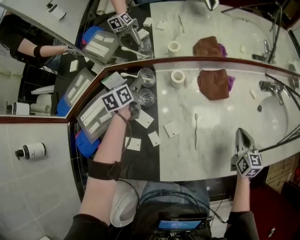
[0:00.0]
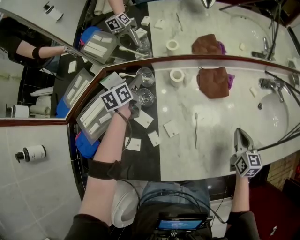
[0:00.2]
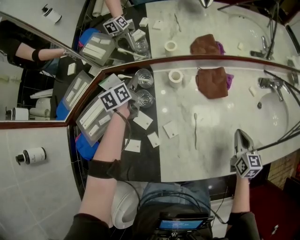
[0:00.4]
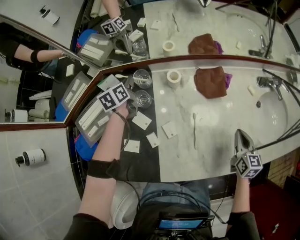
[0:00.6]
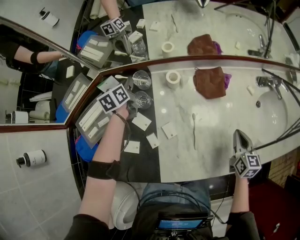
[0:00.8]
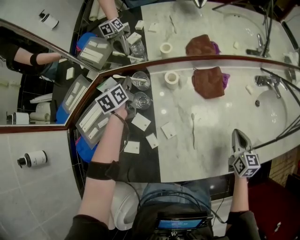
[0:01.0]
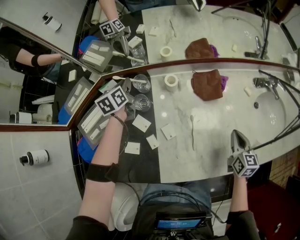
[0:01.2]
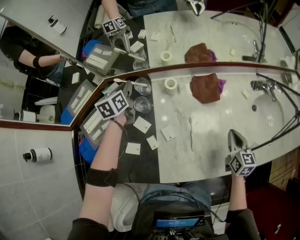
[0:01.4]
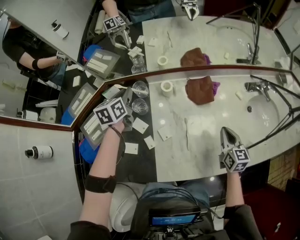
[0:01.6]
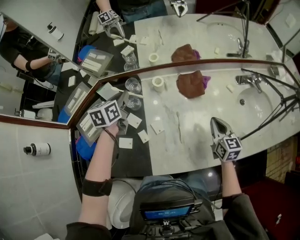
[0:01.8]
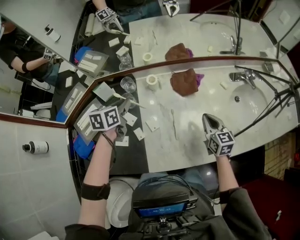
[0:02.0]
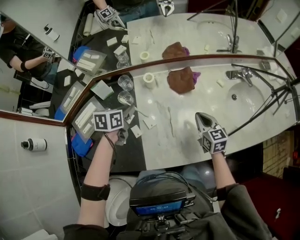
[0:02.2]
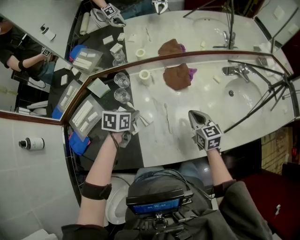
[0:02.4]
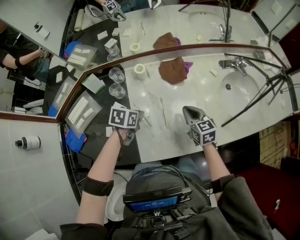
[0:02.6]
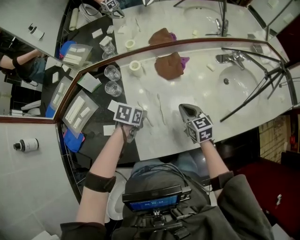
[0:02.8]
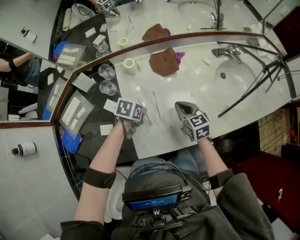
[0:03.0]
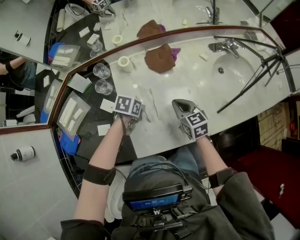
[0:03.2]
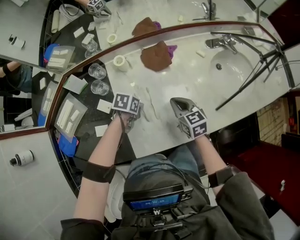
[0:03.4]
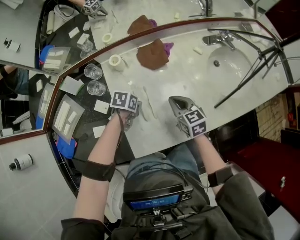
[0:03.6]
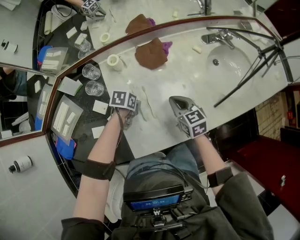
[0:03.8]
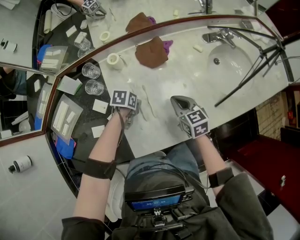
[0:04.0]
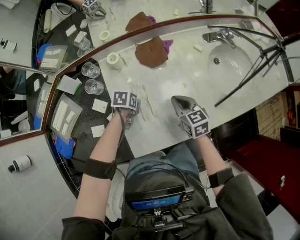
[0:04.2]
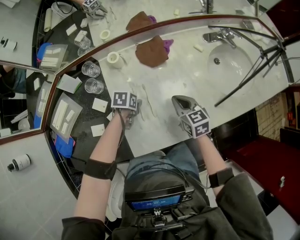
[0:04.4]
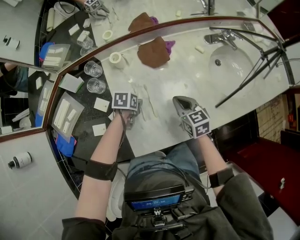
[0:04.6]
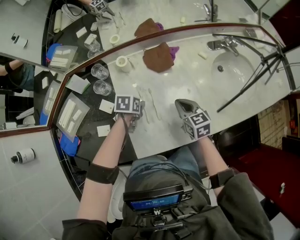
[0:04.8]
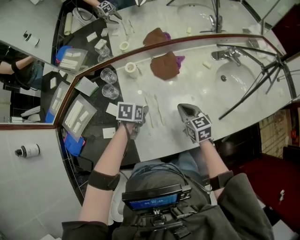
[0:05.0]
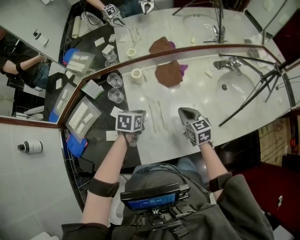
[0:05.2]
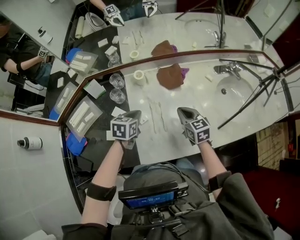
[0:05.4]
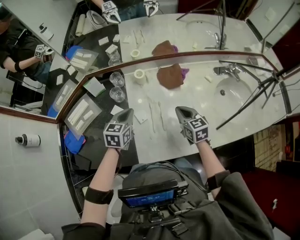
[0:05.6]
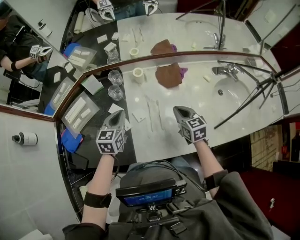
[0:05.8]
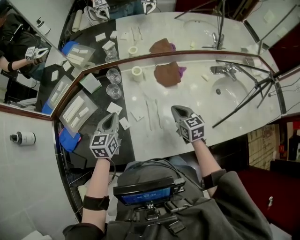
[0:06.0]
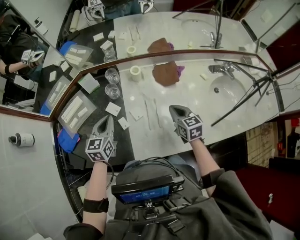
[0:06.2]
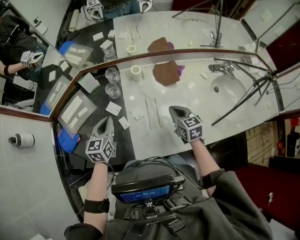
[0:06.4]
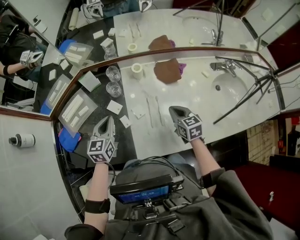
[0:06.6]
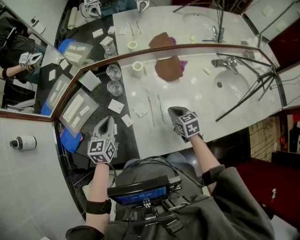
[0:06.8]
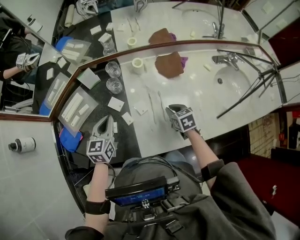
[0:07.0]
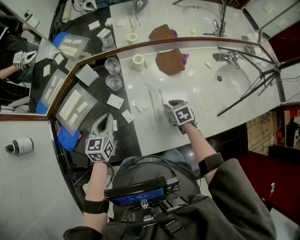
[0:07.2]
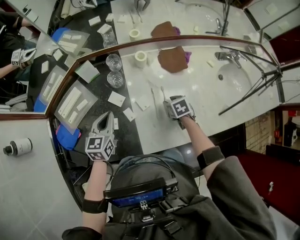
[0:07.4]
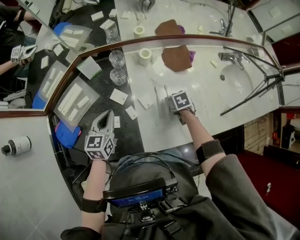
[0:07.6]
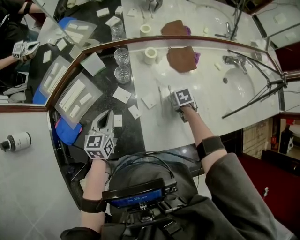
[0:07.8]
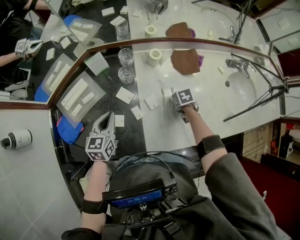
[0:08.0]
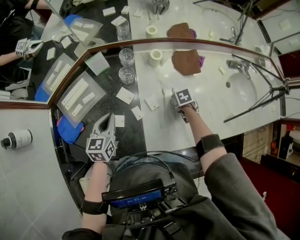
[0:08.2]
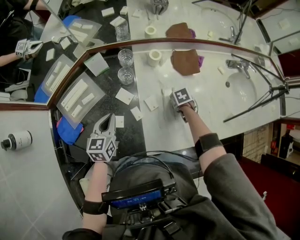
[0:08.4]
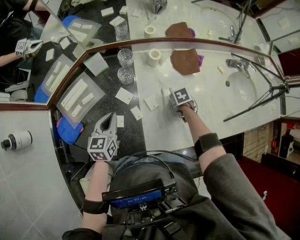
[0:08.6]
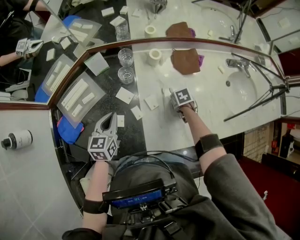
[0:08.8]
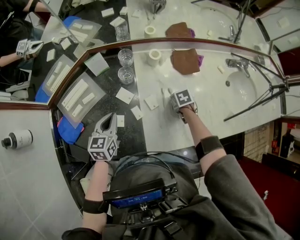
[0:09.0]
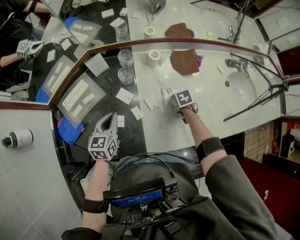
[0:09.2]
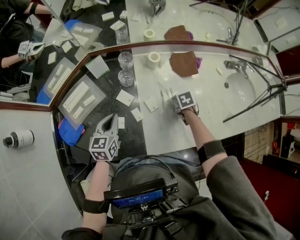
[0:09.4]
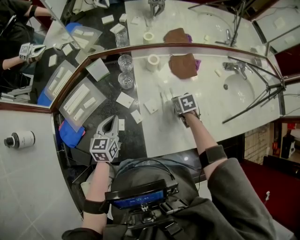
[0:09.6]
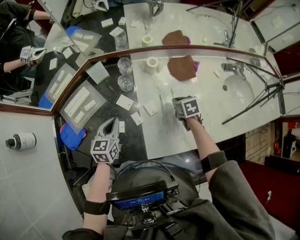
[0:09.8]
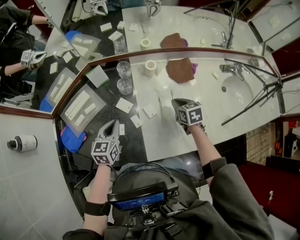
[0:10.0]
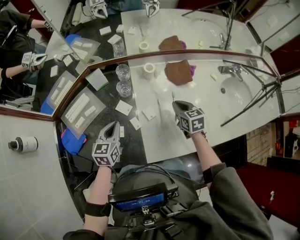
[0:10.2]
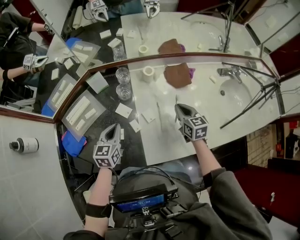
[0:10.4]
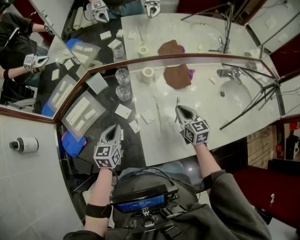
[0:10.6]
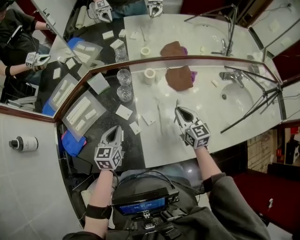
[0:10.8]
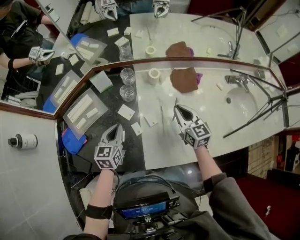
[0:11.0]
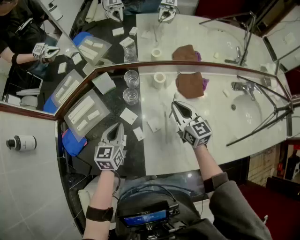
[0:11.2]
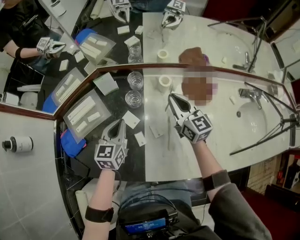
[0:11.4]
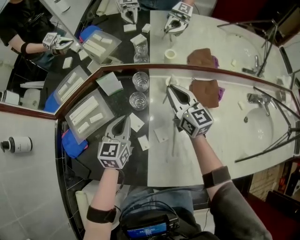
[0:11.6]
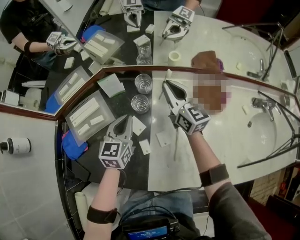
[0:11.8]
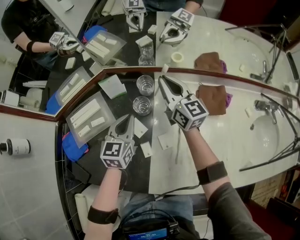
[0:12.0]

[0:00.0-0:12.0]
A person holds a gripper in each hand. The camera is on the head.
0:00.0 to 0:01.6: The left gripper shifts approximately 10 cm upward, and closes.
0:01.6 to 0:03.0: The left gripper goes approximately 35 cm to the right, backward and downward, and turns by some 50 degrees; the right gripper moves to the left, roughly 5 cm.
0:03.0 to 0:04.4: The left gripper travels downward by about 5 cm, and opens.
0:04.4 to 0:06.0: The right gripper moves approximately 10 cm. Meanwhile the left gripper heads upward, covering about 20 cm, points its fingers roughly 40 degrees further upward, and closes its fingers.
0:06.0 to 0:07.6: The left gripper shifts some 10 cm to the left; the right gripper shifts about 15 cm downward, tilts its fingers roughly 40 degrees downward, and opens its fingers.
0:07.6 to 0:09.0: The right gripper closes its fingers.
0:09.0 to 0:10.4: The right gripper is displaced upward by roughly 15 cm, and points its fingers some 40 degrees further upward.
0:10.4 to 0:12.0: The left gripper shifts roughly 15 cm forward; the right gripper goes some 30 cm forward and to the left, and points its fingers some 30 degrees further upward.

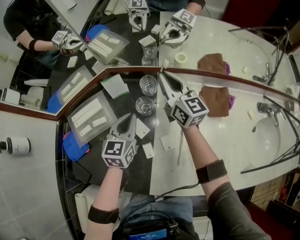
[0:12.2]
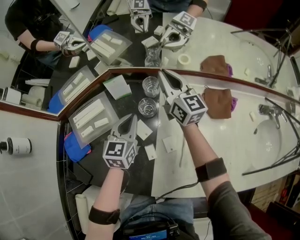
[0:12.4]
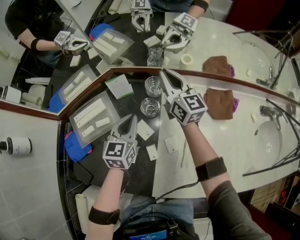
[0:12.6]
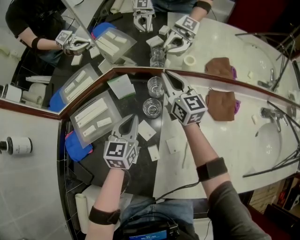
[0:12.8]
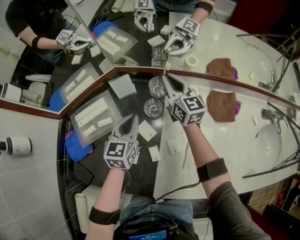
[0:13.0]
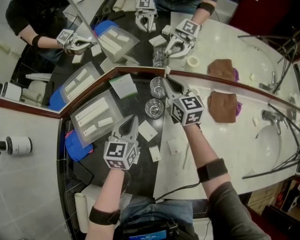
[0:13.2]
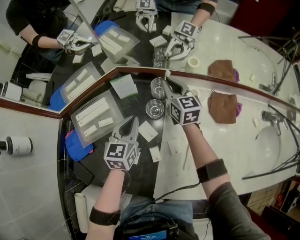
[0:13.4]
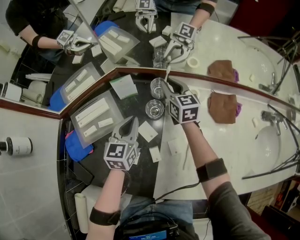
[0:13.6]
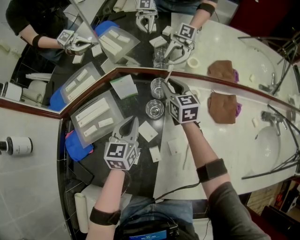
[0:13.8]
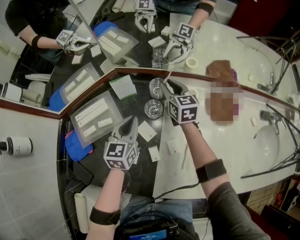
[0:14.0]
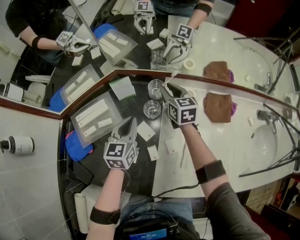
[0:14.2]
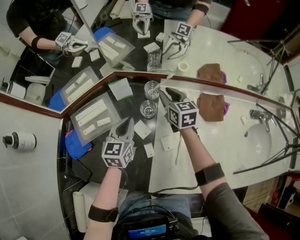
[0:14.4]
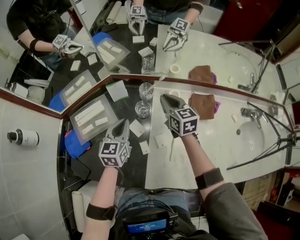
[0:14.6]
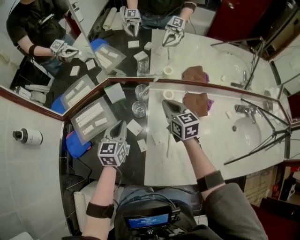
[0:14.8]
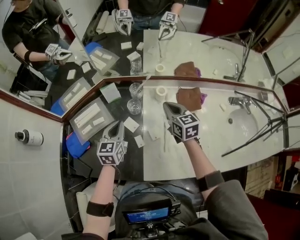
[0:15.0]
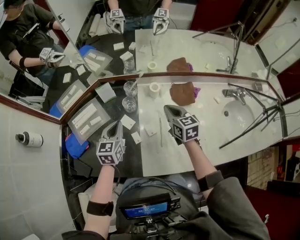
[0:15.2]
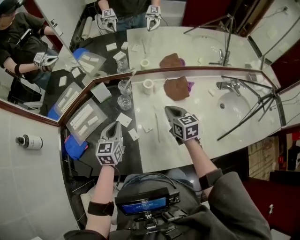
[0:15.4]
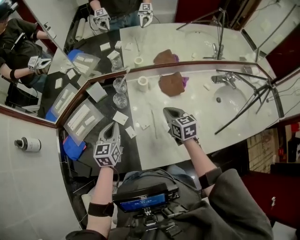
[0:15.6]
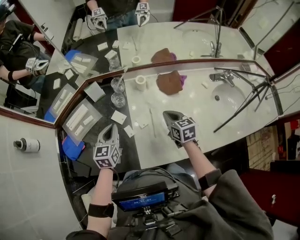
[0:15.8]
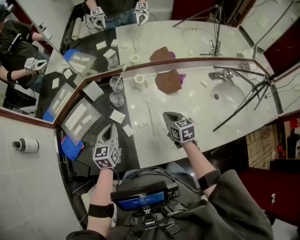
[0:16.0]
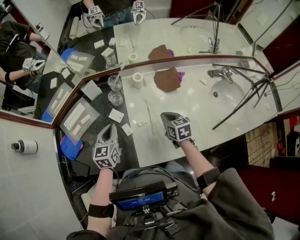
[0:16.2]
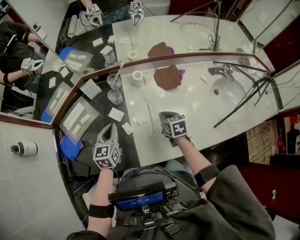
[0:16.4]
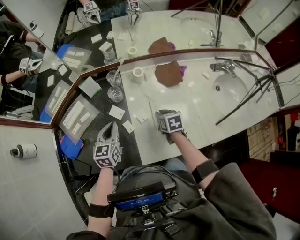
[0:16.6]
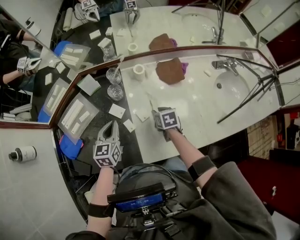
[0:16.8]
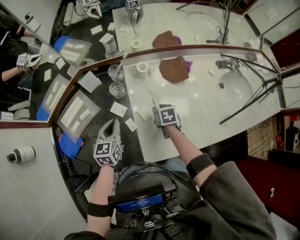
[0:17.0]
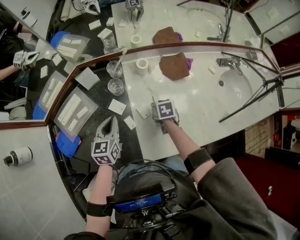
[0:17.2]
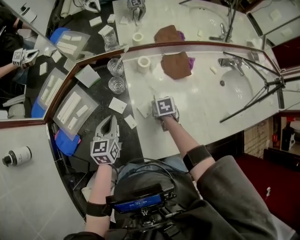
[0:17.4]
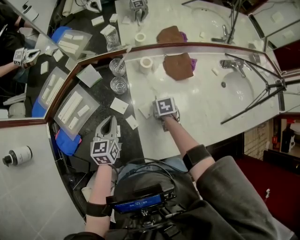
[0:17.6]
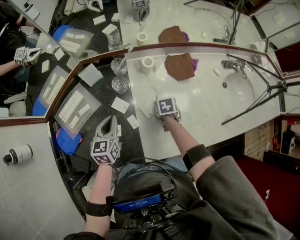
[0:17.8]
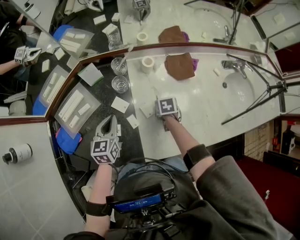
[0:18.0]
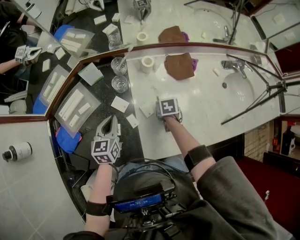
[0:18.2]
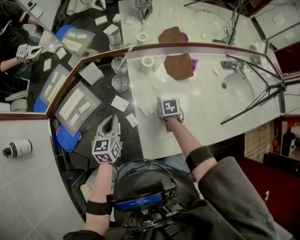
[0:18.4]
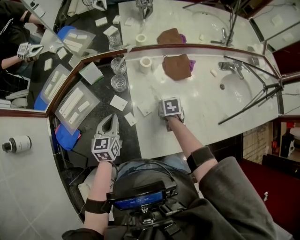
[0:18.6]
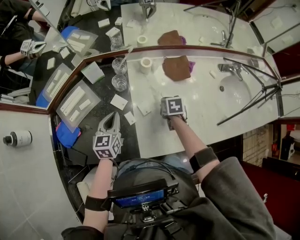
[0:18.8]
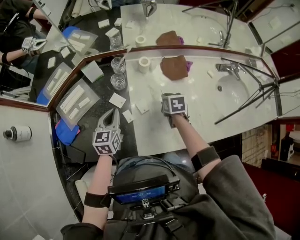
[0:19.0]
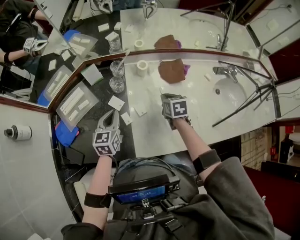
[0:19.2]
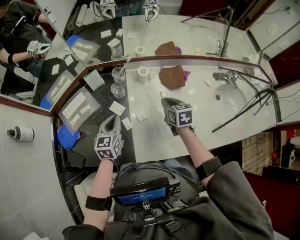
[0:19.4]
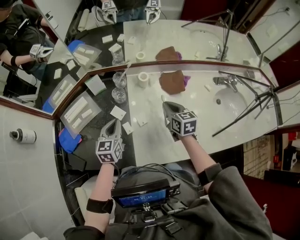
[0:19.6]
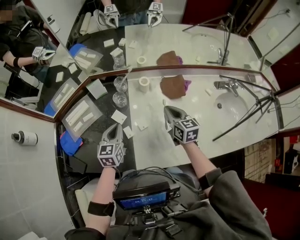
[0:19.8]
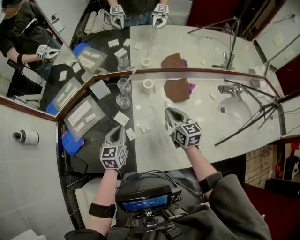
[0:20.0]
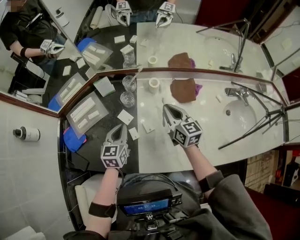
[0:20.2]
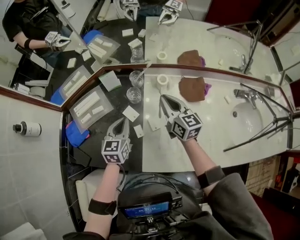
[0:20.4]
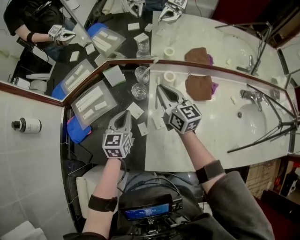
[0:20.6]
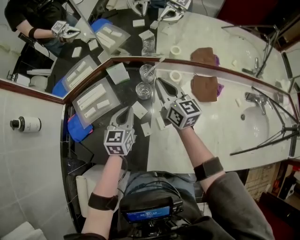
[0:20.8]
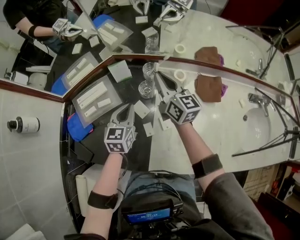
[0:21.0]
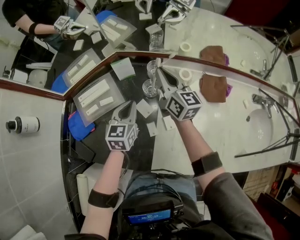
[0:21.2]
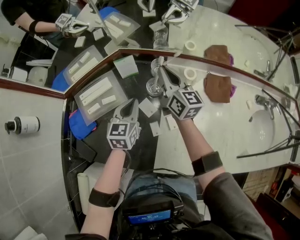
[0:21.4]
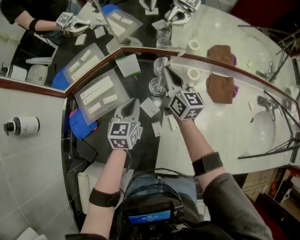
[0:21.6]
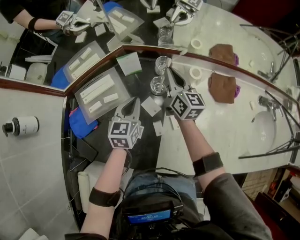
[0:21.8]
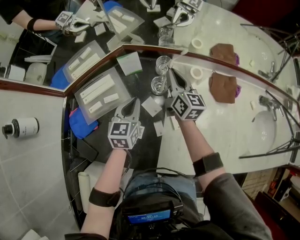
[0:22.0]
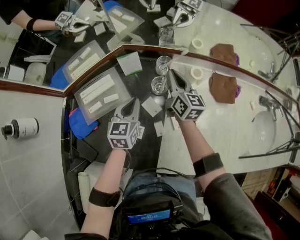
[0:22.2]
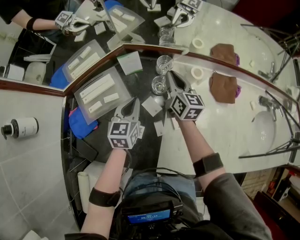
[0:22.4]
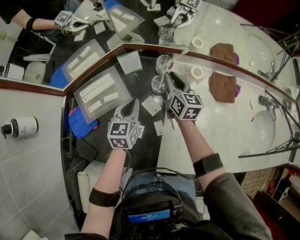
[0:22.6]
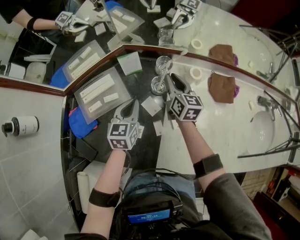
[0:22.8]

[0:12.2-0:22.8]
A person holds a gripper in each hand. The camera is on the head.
0:12.2 to 0:13.8: The right gripper is displaced downward by roughly 10 cm, and rotates roughly 20 degrees.
0:13.8 to 0:15.2: The left gripper shifts about 10 cm backward and upward; the right gripper travels backward, to the right and upward by some 25 cm, and closes.
0:15.2 to 0:16.8: The left gripper moves about 5 cm; the right gripper shifts approximately 15 cm downward and backward, rotates roughly 30 degrees, and opens its fingers.
0:16.8 to 0:18.2: The right gripper shifts about 5 cm downward, and closes.
0:18.2 to 0:19.8: The left gripper shifts approximately 5 cm to the right, while the right gripper goes about 20 cm upward, and tips its fingers upward by some 40 degrees.
0:19.8 to 0:21.2: The left gripper travels forward and to the left by approximately 10 cm. Meanwhile the right gripper moves forward and to the left, roughly 25 cm, and changes its angle by roughly 20 degrees.
0:21.2 to 0:22.8: The right gripper moves downward, about 10 cm.

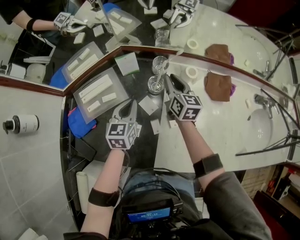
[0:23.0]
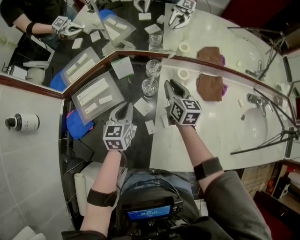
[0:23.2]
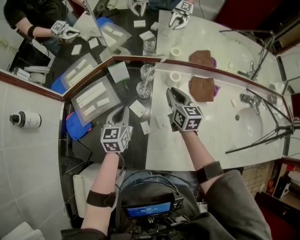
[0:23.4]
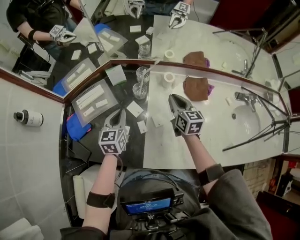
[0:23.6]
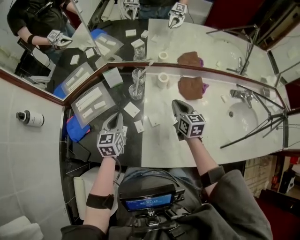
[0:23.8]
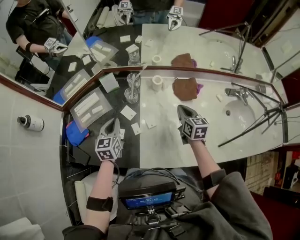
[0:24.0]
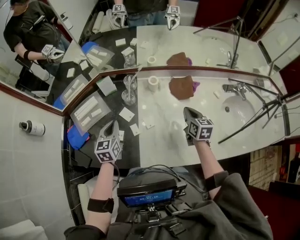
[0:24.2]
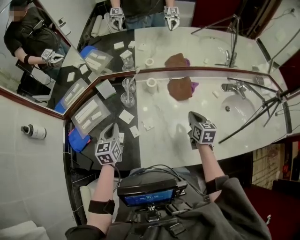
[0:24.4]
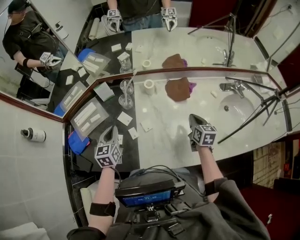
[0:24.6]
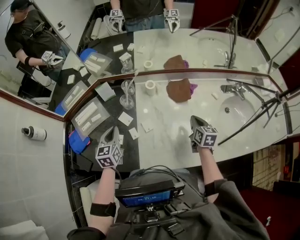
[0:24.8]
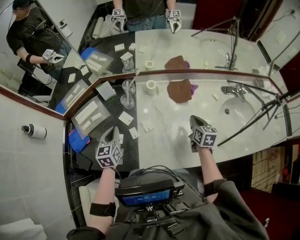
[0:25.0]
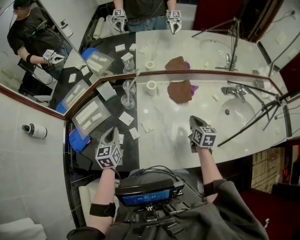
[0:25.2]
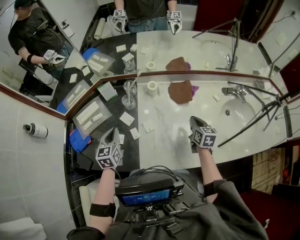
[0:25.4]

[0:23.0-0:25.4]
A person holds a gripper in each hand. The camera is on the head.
0:23.0 to 0:24.2: The right gripper goes approximately 30 cm to the right and backward, while the left gripper is displaced backward and upward by approximately 10 cm.
0:24.2 to 0:25.4: The right gripper changes place by approximately 5 cm.
